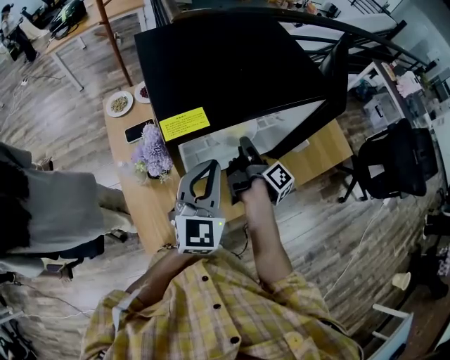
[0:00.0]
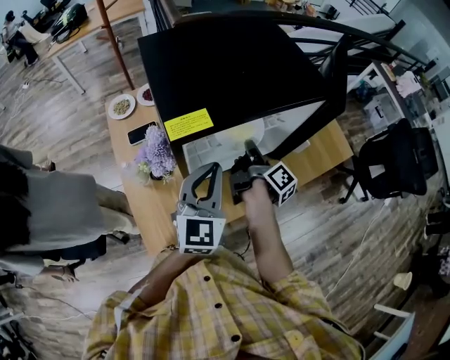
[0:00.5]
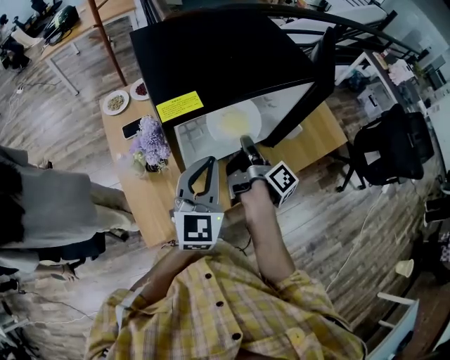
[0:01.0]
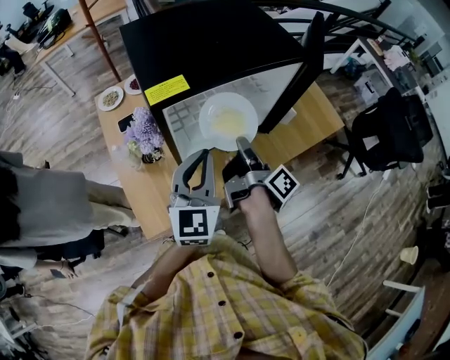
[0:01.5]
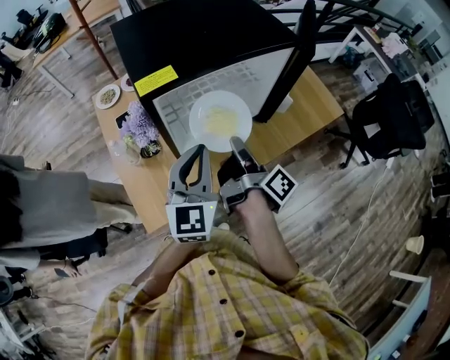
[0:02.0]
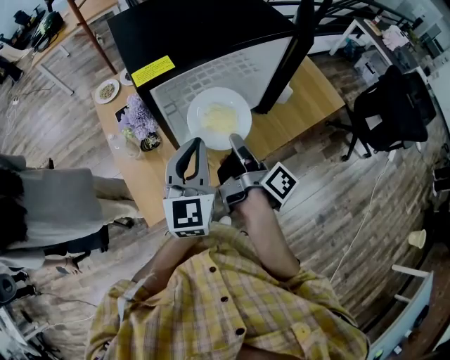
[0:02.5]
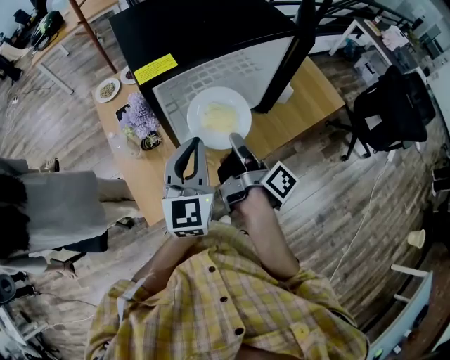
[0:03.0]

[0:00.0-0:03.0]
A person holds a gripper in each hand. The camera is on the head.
0:00.0 to 0:01.5: The left gripper travels backward by roughly 5 cm. The right gripper travels backward and upward by some 10 cm, and closes up.
0:01.5 to 0:03.0: The right gripper moves backward, approximately 5 cm.

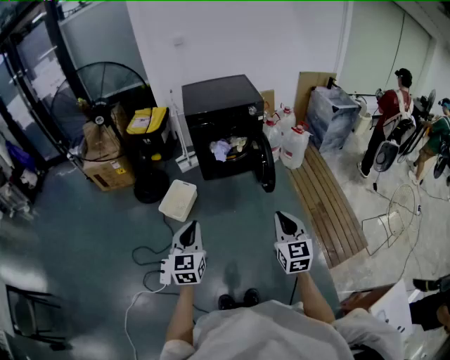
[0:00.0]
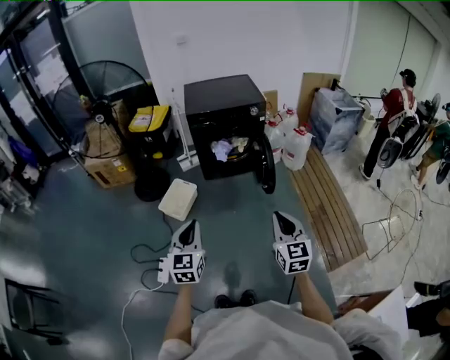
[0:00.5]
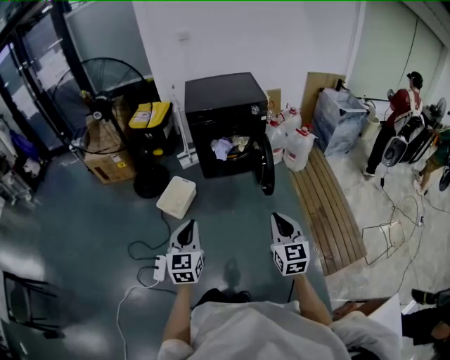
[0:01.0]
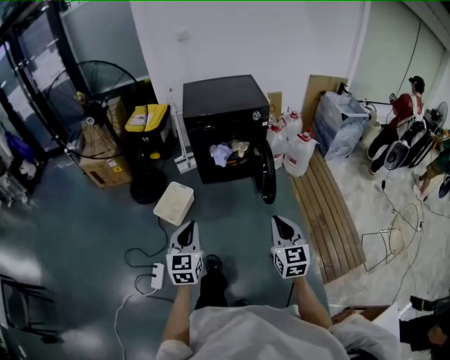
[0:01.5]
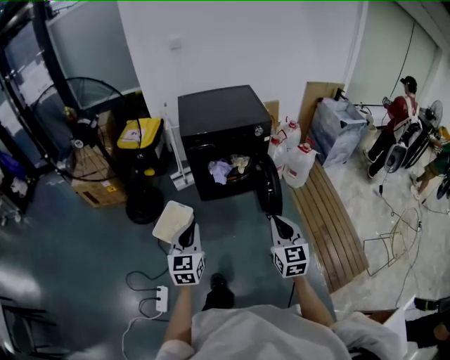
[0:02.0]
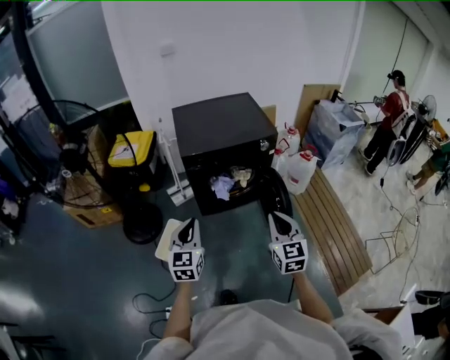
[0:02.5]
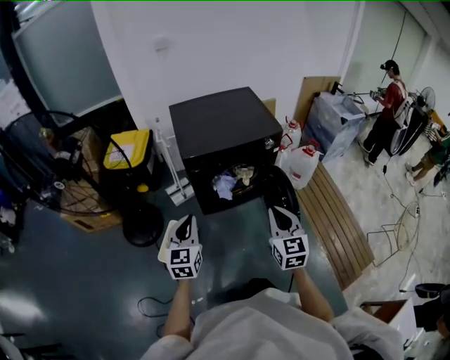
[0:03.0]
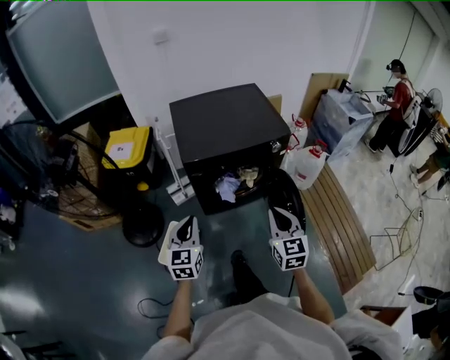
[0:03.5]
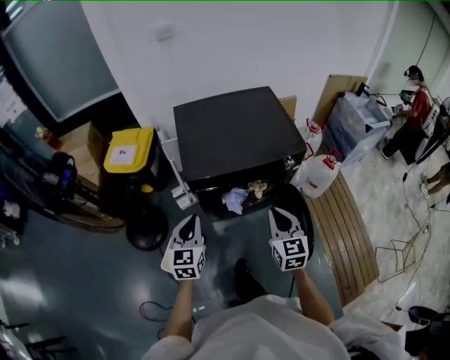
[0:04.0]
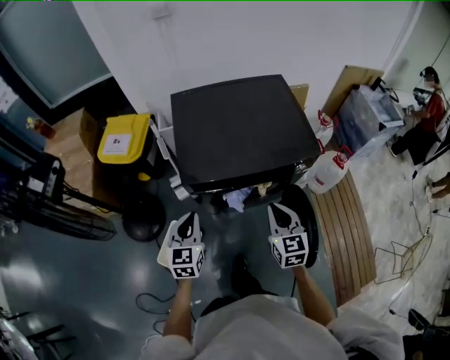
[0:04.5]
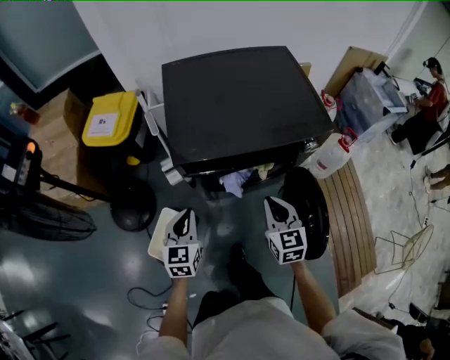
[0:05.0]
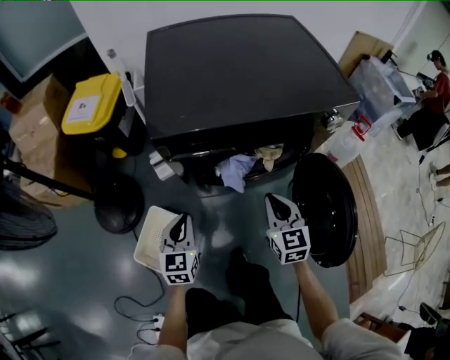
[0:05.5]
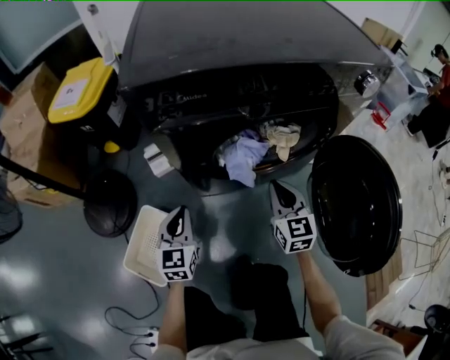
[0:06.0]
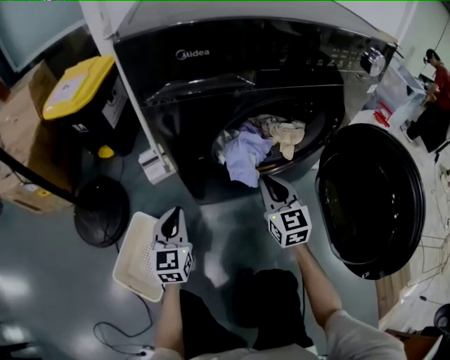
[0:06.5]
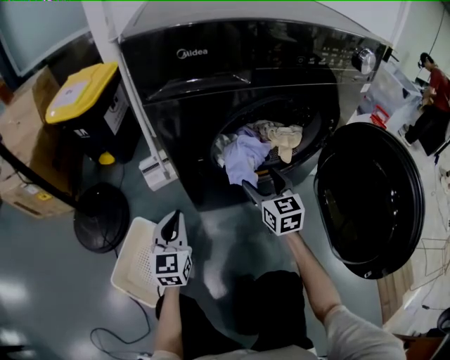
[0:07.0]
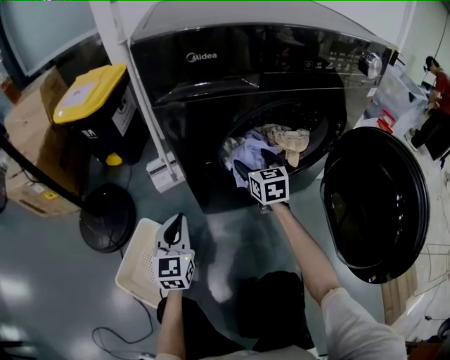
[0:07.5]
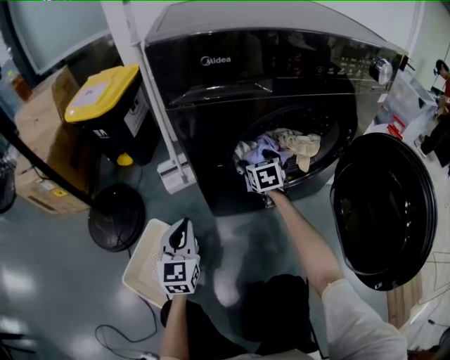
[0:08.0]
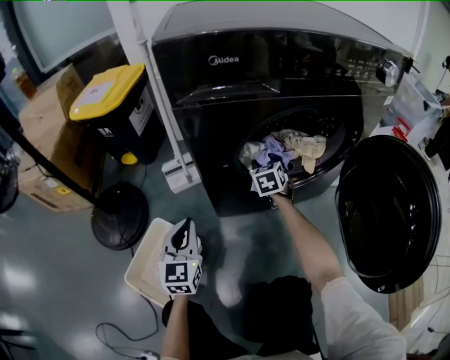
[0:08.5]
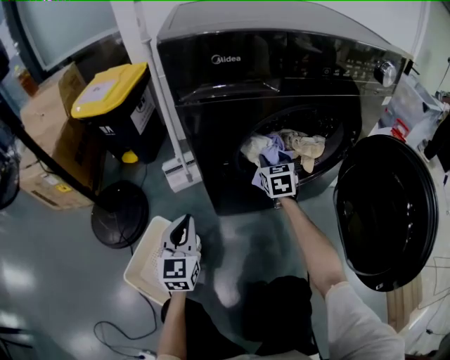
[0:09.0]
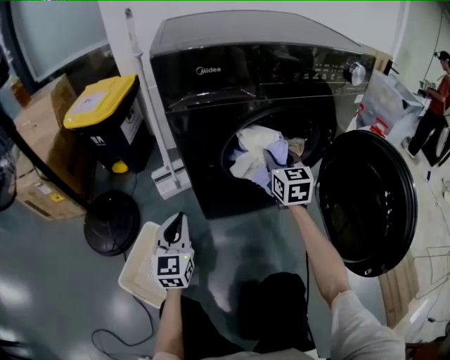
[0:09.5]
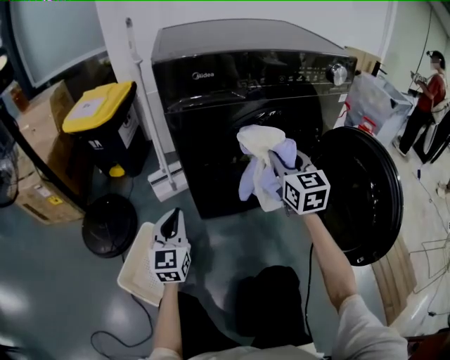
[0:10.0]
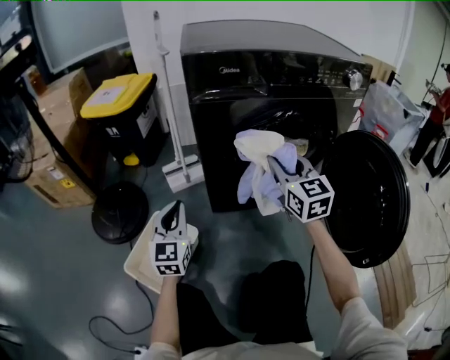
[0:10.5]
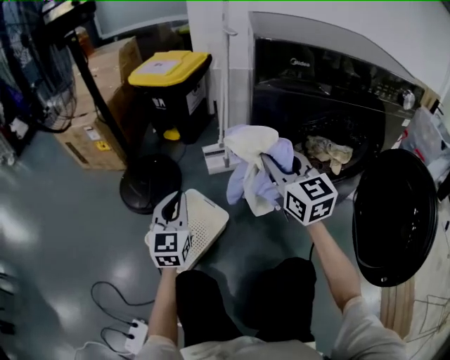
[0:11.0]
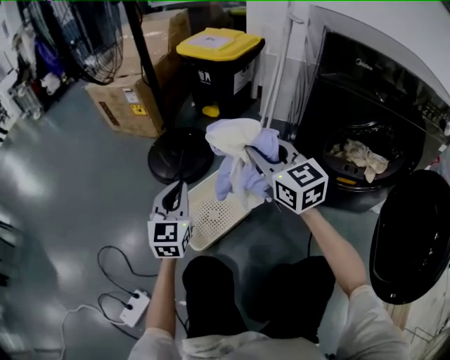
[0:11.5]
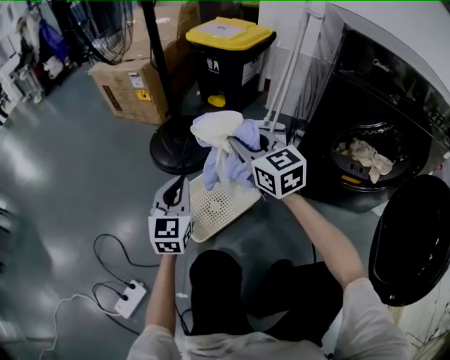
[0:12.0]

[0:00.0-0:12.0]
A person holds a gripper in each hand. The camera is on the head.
0:00.0 to 0:02.0: The two grippers go approximately 25 cm forward.
0:02.0 to 0:04.0: The two grippers travel together, forward, approximately 50 cm.
0:04.0 to 0:06.0: The two grippers go approximately 50 cm downward.
0:06.0 to 0:08.0: The left gripper is displaced downward by some 5 cm. Meanwhile the right gripper travels forward, downward and to the left by approximately 25 cm, and opens up.
0:08.0 to 0:10.0: The right gripper is displaced upward and backward by approximately 25 cm, changes its angle by about 30 degrees, and closes its fingers. Meanwhile the left gripper heads upward, covering roughly 5 cm.
0:10.0 to 0:12.0: The left gripper moves approximately 30 cm, and swivels about 30 degrees; the right gripper ends up some 50 cm from where it was, and turns by roughly 50 degrees.

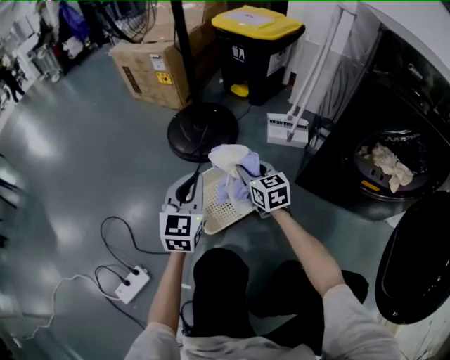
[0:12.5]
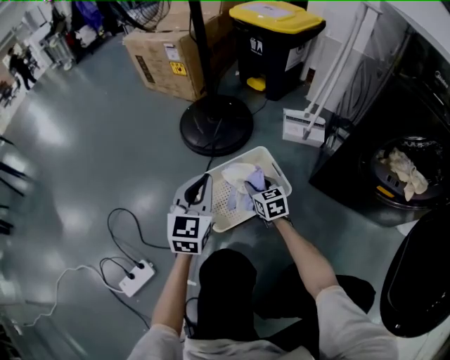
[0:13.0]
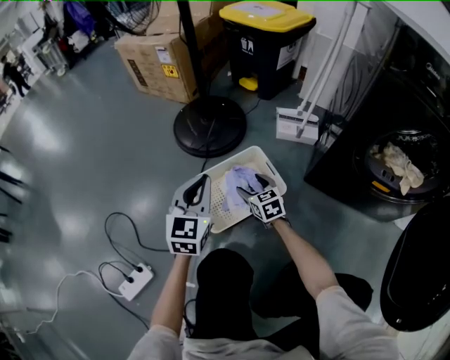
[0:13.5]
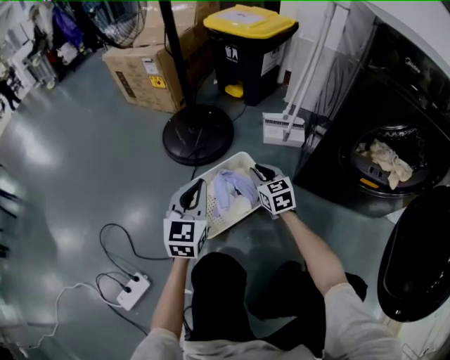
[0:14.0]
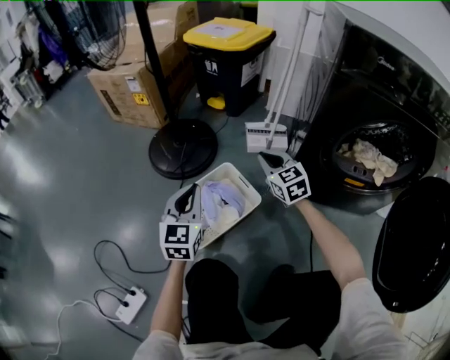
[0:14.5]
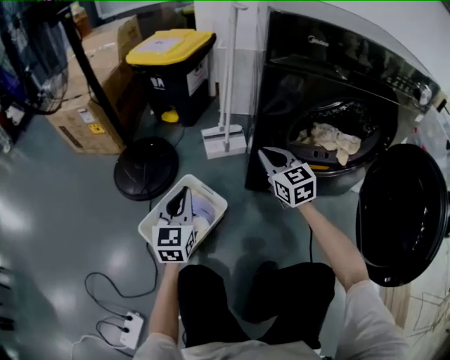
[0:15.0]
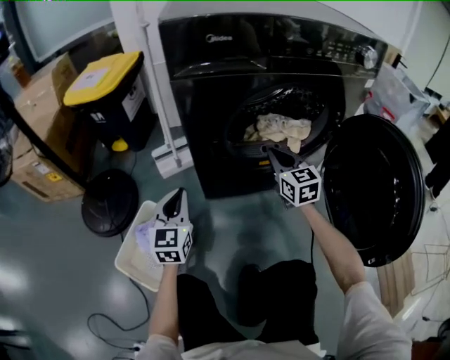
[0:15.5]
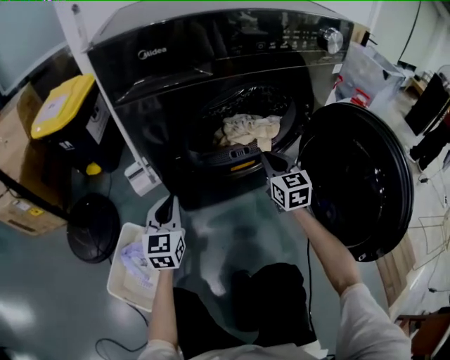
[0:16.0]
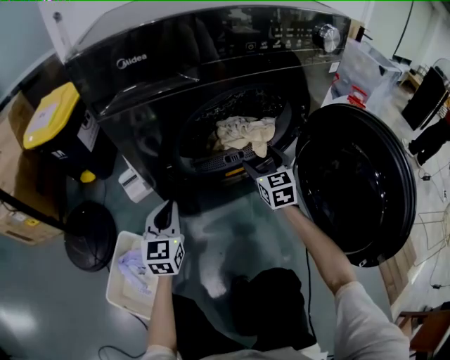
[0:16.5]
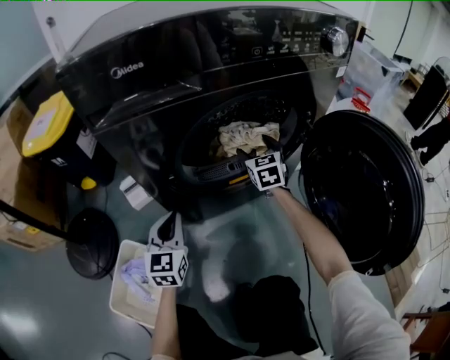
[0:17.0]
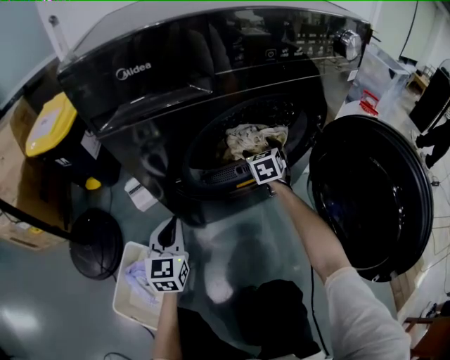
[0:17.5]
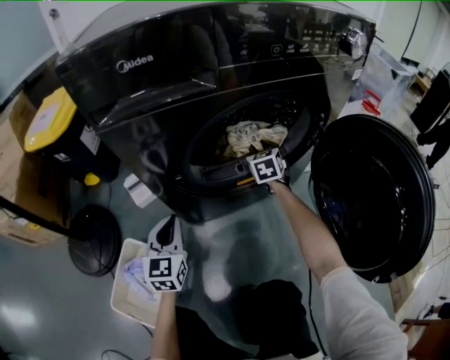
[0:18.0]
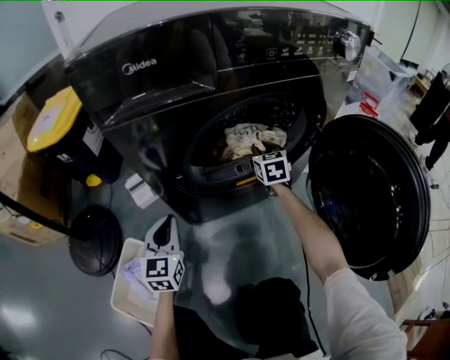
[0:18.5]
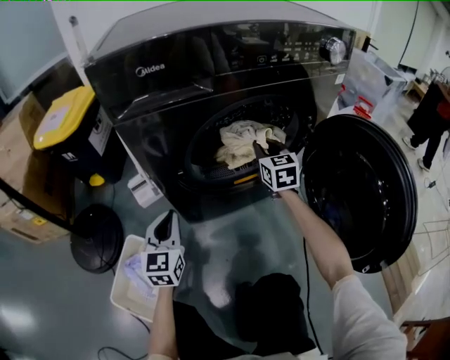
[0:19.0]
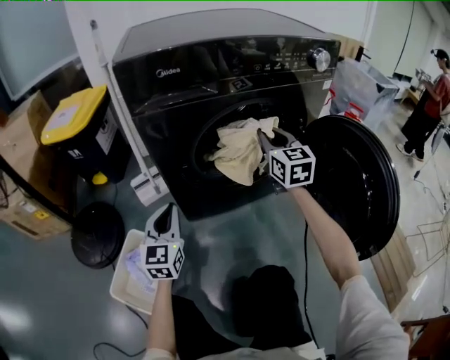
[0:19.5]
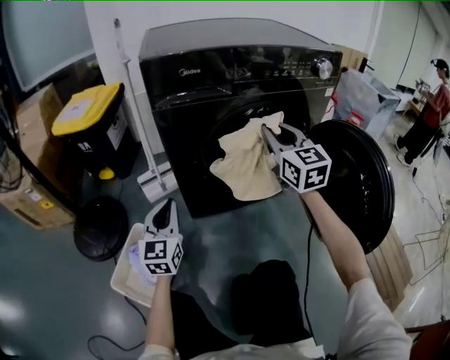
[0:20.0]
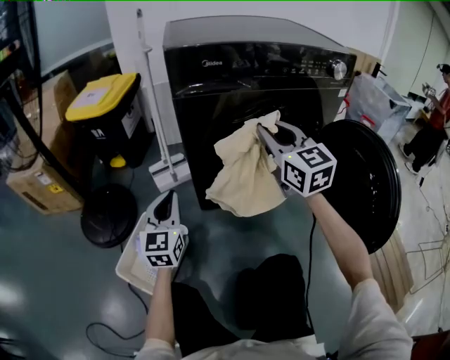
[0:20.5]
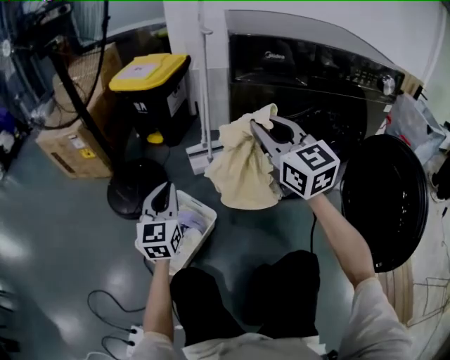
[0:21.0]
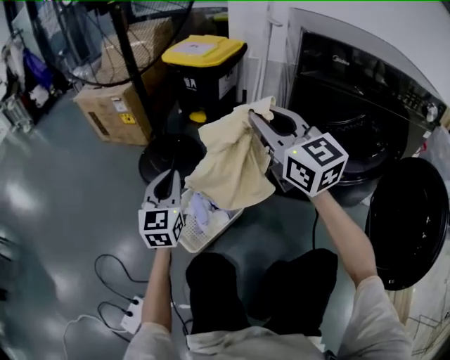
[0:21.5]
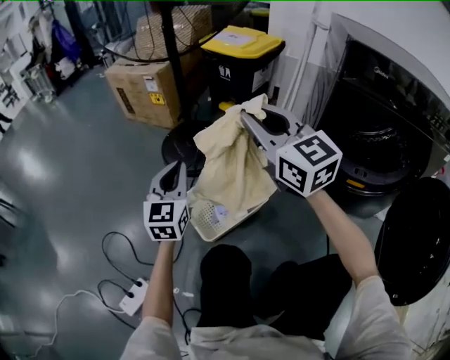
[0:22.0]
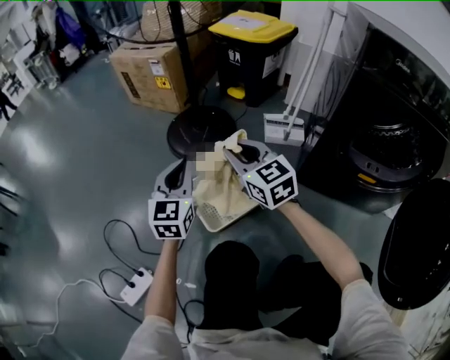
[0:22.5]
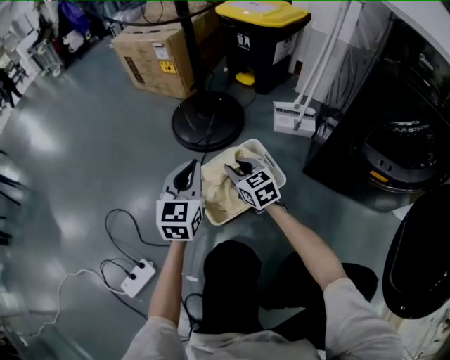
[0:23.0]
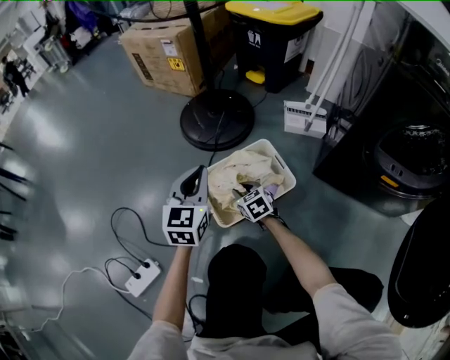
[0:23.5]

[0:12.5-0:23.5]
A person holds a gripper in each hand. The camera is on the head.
0:12.5 to 0:14.5: The right gripper is displaced to the right by some 15 cm, reaches approximately 15 cm downward, then returns, and opens, then closes once more. The left gripper is displaced to the right by about 5 cm.
0:14.5 to 0:16.0: The right gripper moves approximately 50 cm, and rotates roughly 50 degrees. The left gripper ends up roughly 35 cm from where it was, and turns by roughly 30 degrees.
0:16.0 to 0:18.0: The right gripper travels forward and downward by roughly 20 cm, swivels approximately 20 degrees, and opens, then closes once more.
0:18.0 to 0:20.0: The right gripper travels upward and backward by about 40 cm, and tips its fingers upward by roughly 30 degrees, while the left gripper travels upward and backward by approximately 15 cm.
0:20.0 to 0:21.5: The left gripper moves some 30 cm, and turns by about 30 degrees. Meanwhile the right gripper moves approximately 40 cm, and rotates some 40 degrees.
0:21.5 to 0:23.5: The left gripper is displaced downward and to the left by some 15 cm. Meanwhile the right gripper travels downward by some 50 cm, and angles its fingers downward, by approximately 50 degrees.
